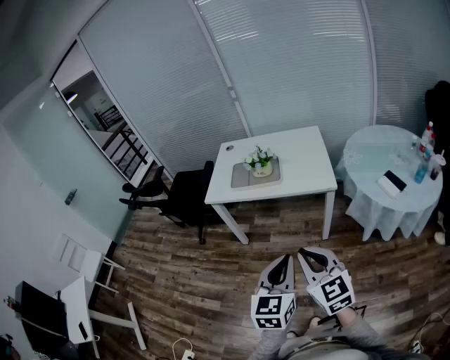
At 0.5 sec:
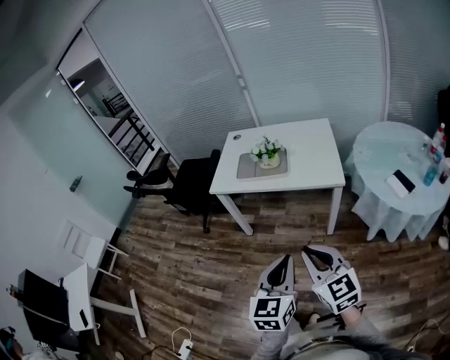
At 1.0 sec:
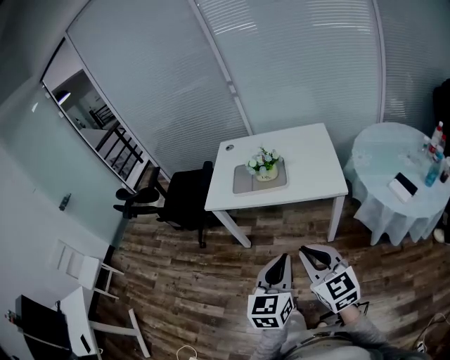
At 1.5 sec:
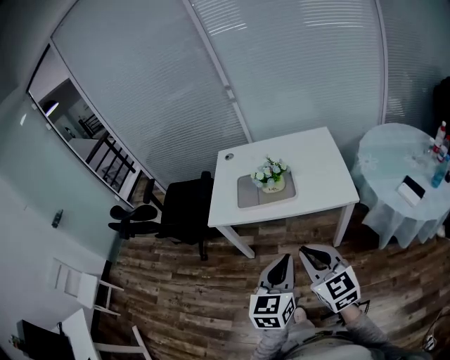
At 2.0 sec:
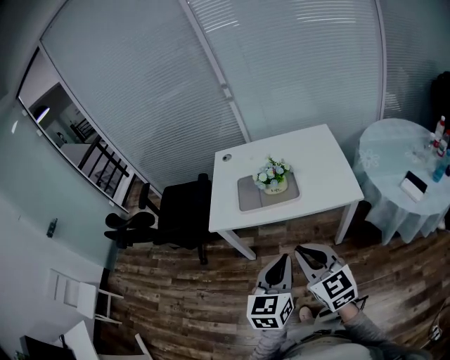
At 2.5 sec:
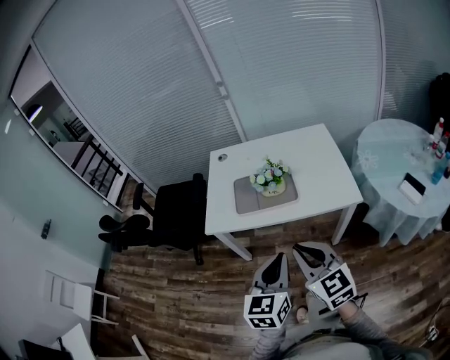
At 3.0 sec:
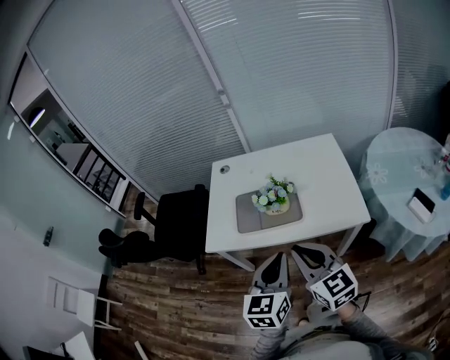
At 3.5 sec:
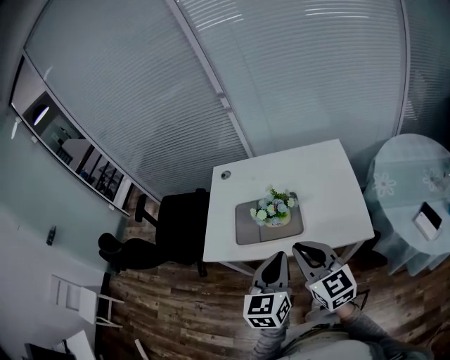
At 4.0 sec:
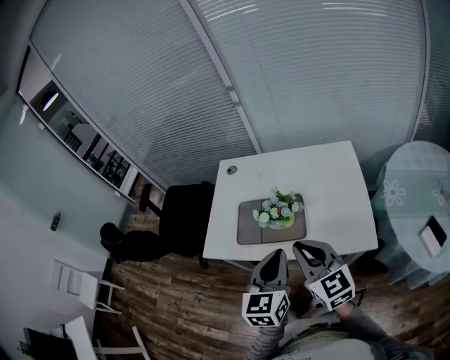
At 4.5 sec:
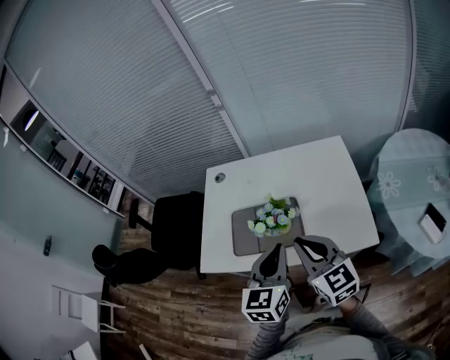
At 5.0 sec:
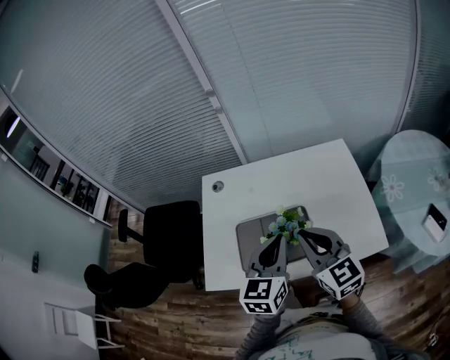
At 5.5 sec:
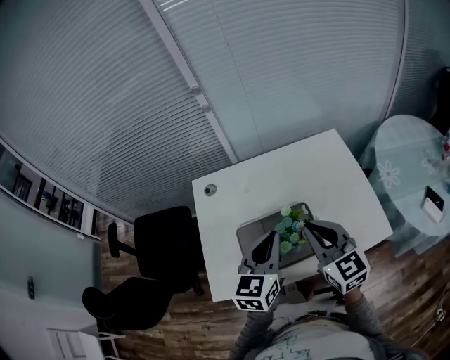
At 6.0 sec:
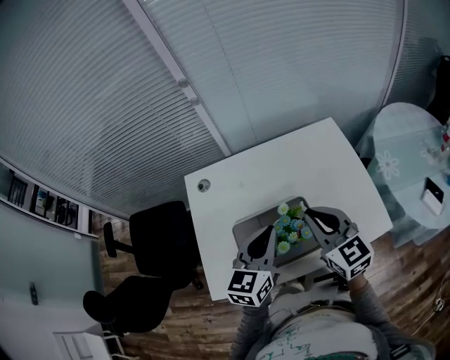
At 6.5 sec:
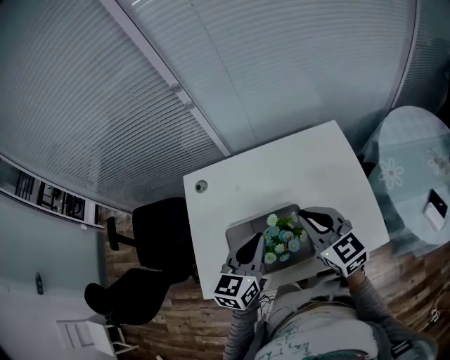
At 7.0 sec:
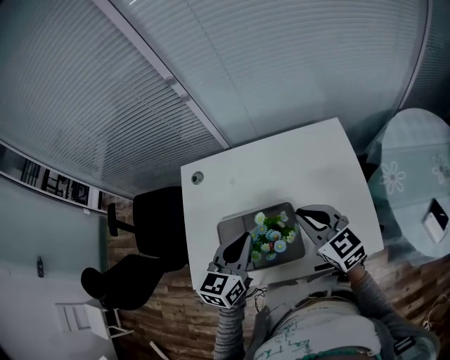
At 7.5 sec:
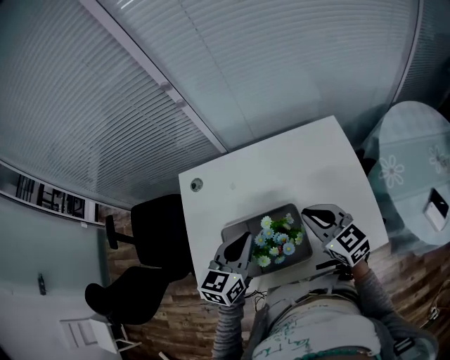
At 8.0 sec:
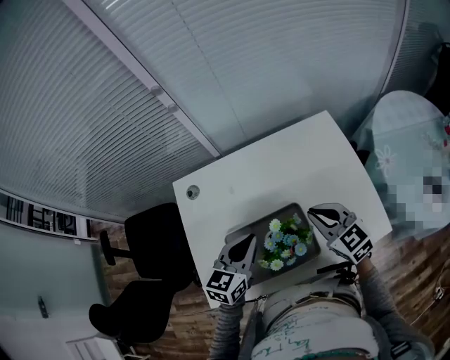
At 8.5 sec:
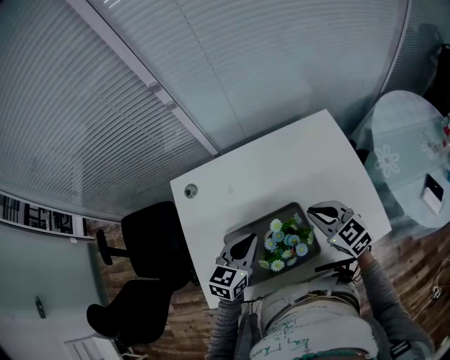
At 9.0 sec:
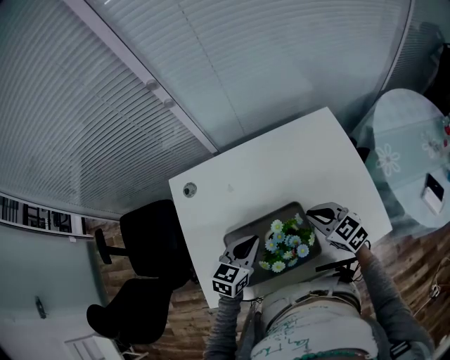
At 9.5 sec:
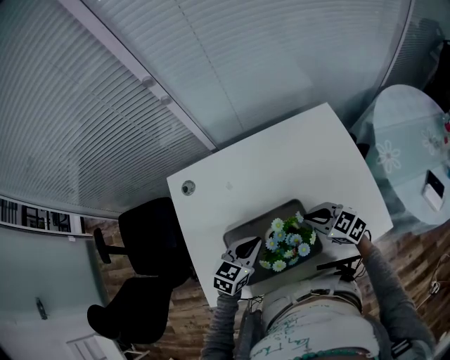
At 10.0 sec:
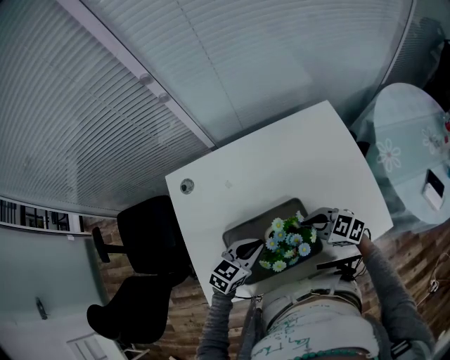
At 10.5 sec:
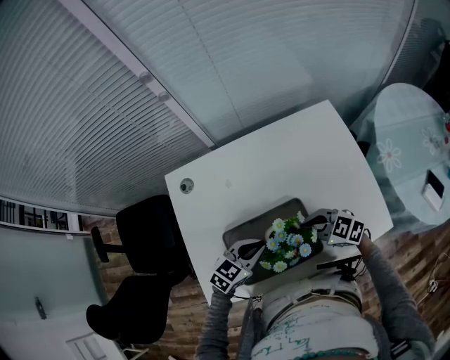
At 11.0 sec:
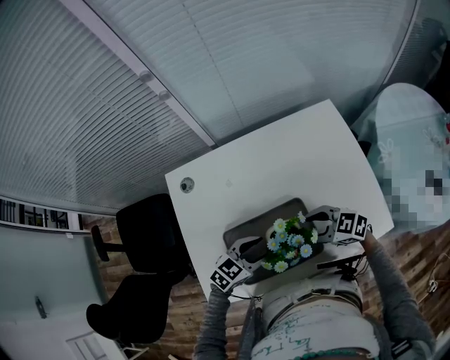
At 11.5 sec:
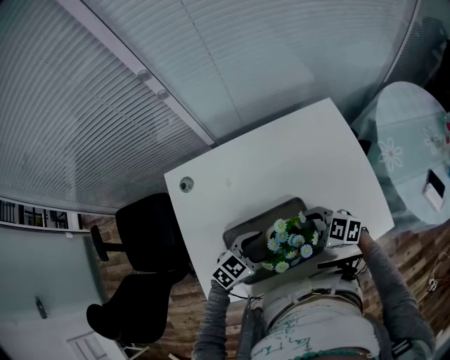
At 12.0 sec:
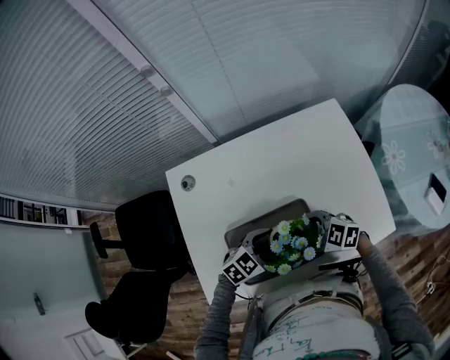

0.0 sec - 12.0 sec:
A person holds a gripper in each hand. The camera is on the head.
0.0 sec - 2.0 sec: Both grippers move forward and to the left, some 25 cm.
2.0 sec - 4.0 sec: The grippers both shift forward by approximately 25 cm.
4.0 sec - 6.0 sec: Both grippers move forward, roughly 20 cm. The left gripper turns by roughly 30 degrees.
6.0 sec - 8.0 sec: The right gripper goes some 10 cm downward, forward and to the right. Meanwhile the left gripper travels downward by some 5 cm.
8.0 sec - 10.0 sec: Both grippers travel together downward, some 10 cm. The right gripper changes its angle by about 30 degrees, while the left gripper changes its angle by roughly 20 degrees.
10.0 sec - 12.0 sec: The left gripper shifts by about 5 cm, changes its angle by about 20 degrees, and opens its fingers. Meanwhile the right gripper opens up.

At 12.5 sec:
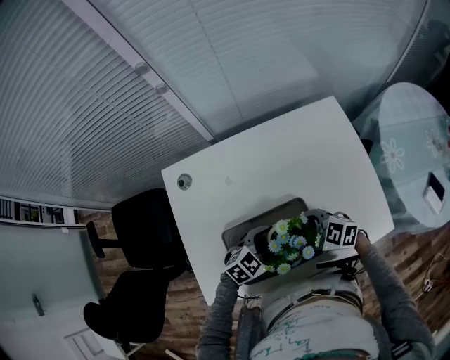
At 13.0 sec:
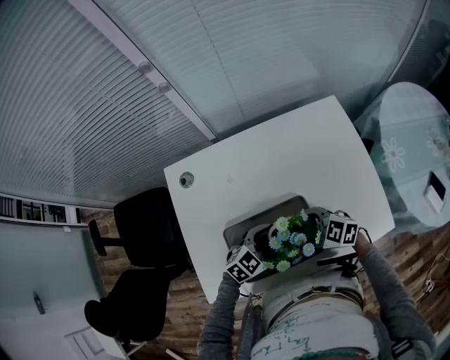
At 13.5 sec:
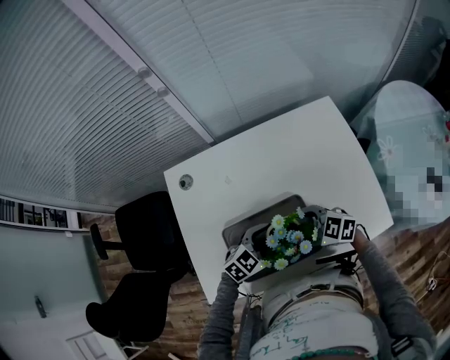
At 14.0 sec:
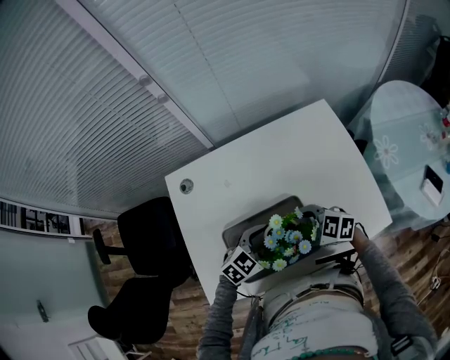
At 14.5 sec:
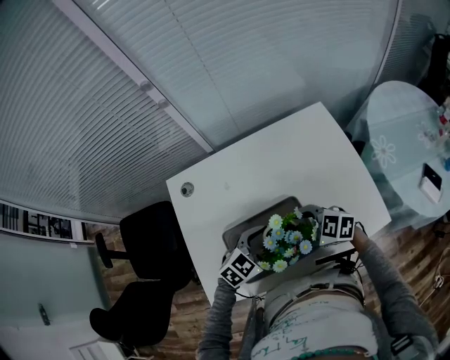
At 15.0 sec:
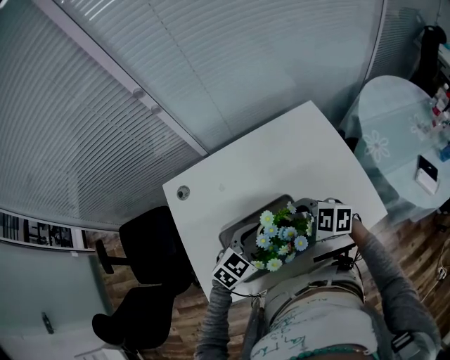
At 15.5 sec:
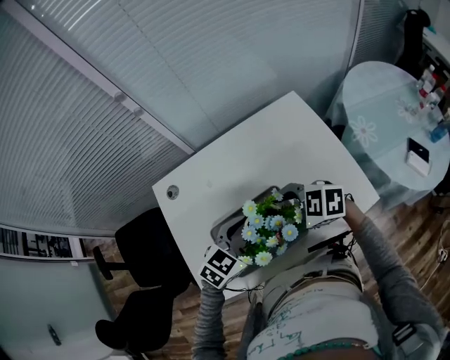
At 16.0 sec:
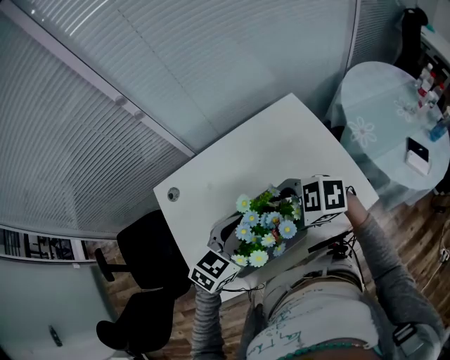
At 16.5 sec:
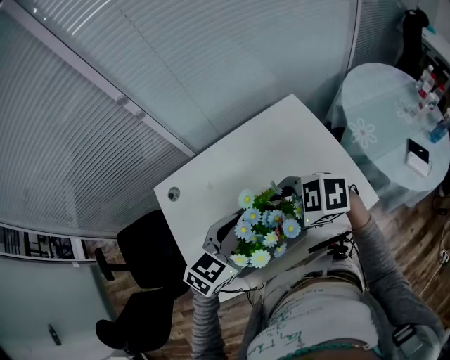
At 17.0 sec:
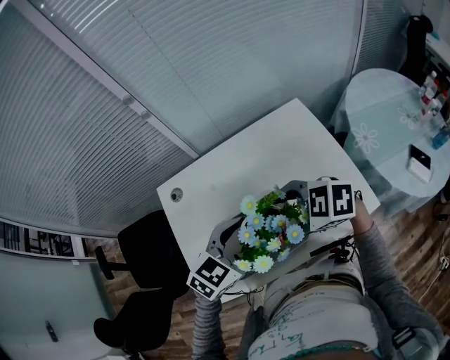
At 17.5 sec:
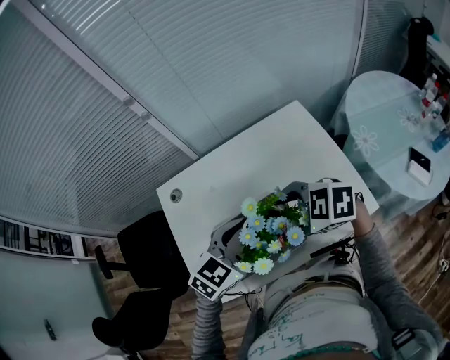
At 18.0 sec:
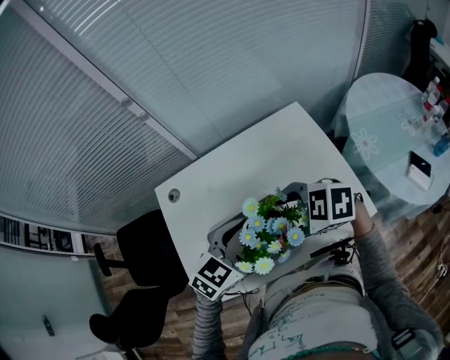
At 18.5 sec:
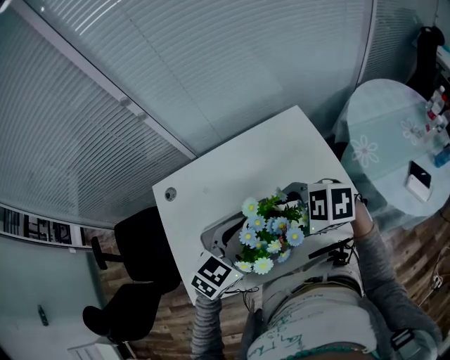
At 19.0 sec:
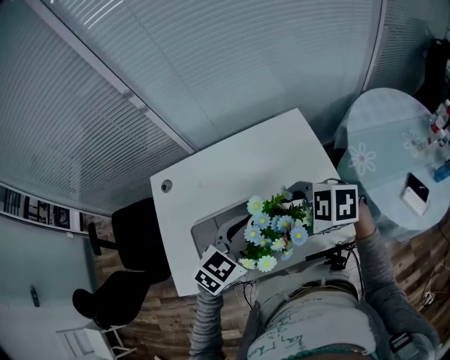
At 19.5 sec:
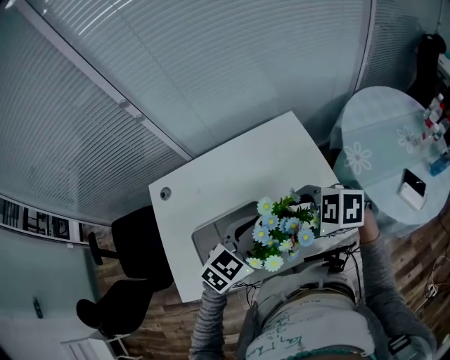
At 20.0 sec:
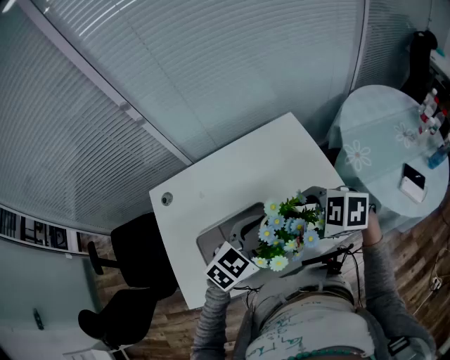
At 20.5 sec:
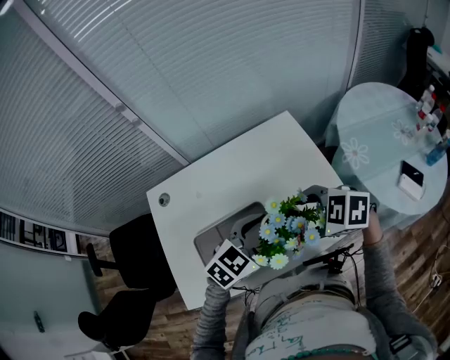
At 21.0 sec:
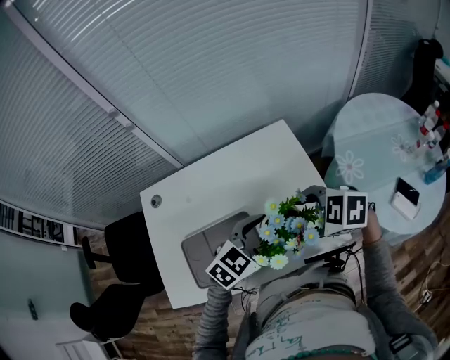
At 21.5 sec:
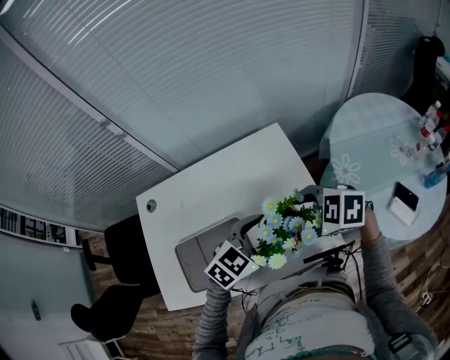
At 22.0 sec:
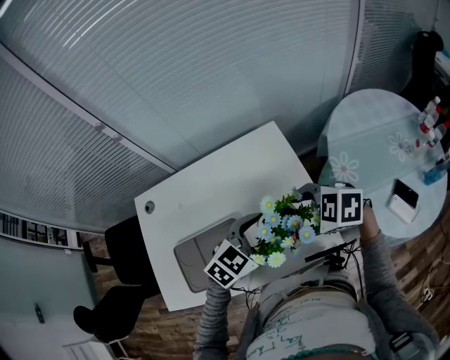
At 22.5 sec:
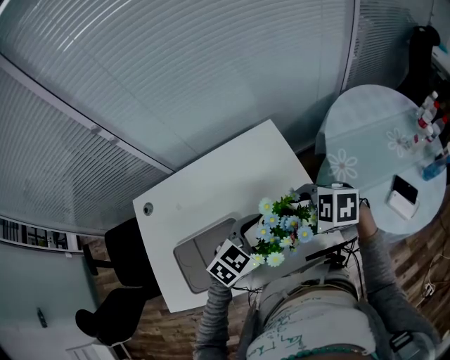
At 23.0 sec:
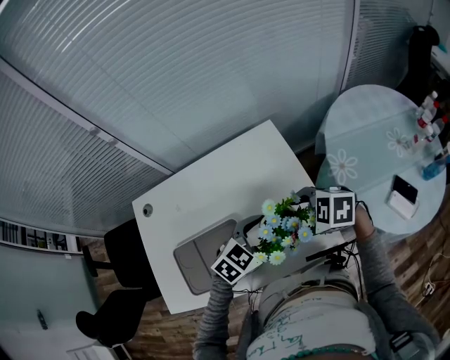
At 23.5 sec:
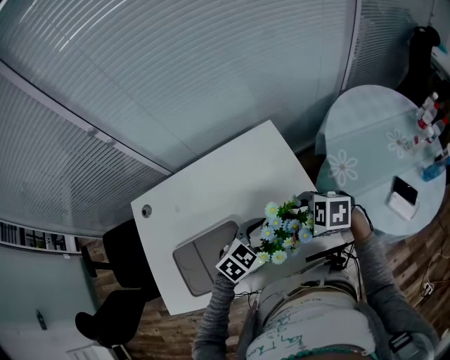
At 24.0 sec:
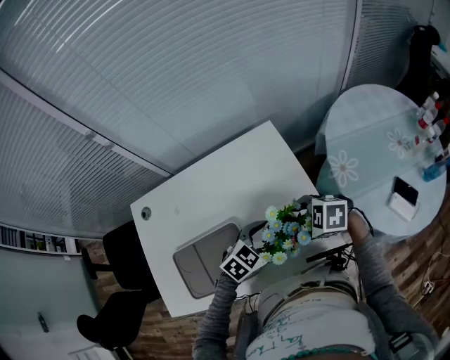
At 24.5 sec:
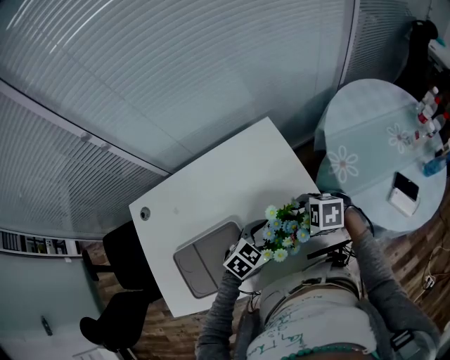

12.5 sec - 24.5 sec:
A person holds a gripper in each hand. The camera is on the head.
12.5 sec - 14.5 sec: The left gripper changes place by about 5 cm.
14.5 sec - 16.5 sec: The two grippers go roughly 15 cm upward.
16.5 sec - 18.5 sec: The left gripper moves some 5 cm, while the right gripper ends up about 5 cm from where it was.
18.5 sec - 20.5 sec: The left gripper shifts by some 5 cm. Meanwhile the right gripper moves some 5 cm.
20.5 sec - 22.5 sec: The right gripper shifts by roughly 15 cm; the left gripper moves some 15 cm.
22.5 sec - 24.5 sec: The grippers both shift downward by approximately 10 cm.

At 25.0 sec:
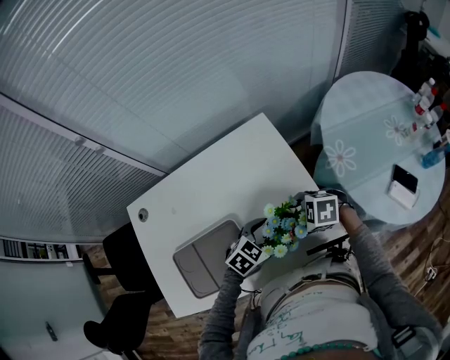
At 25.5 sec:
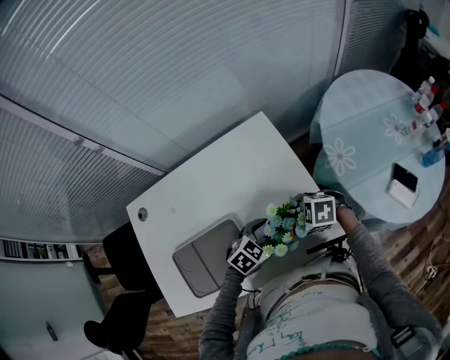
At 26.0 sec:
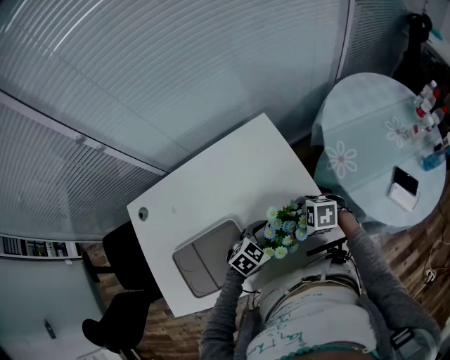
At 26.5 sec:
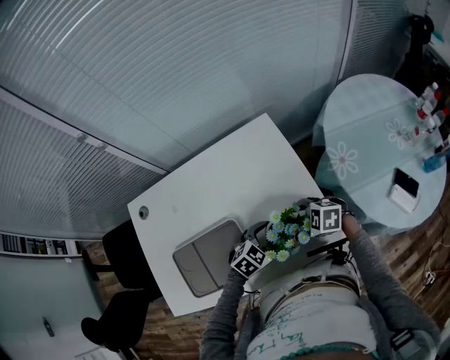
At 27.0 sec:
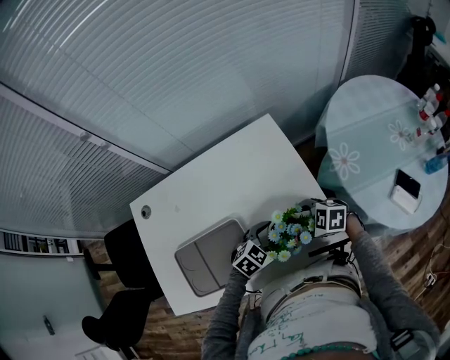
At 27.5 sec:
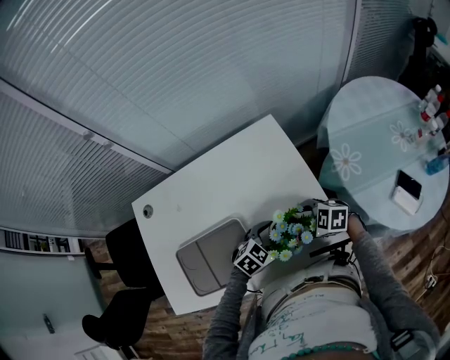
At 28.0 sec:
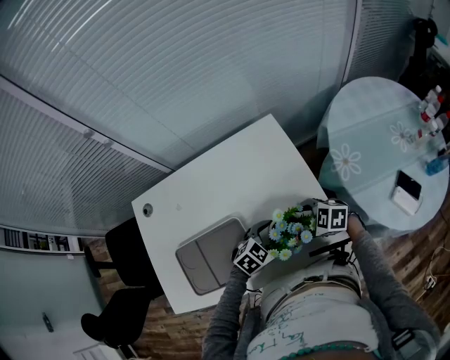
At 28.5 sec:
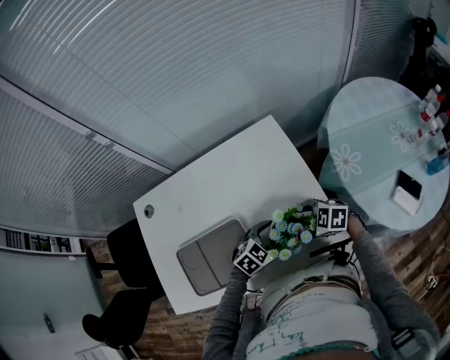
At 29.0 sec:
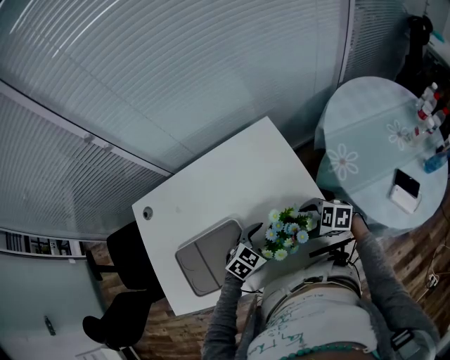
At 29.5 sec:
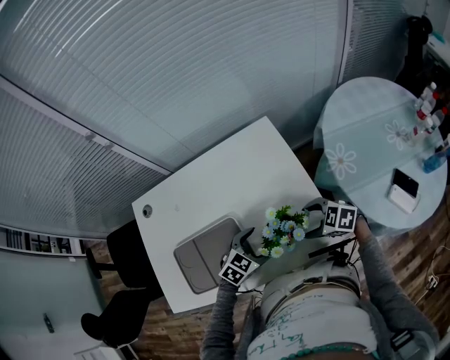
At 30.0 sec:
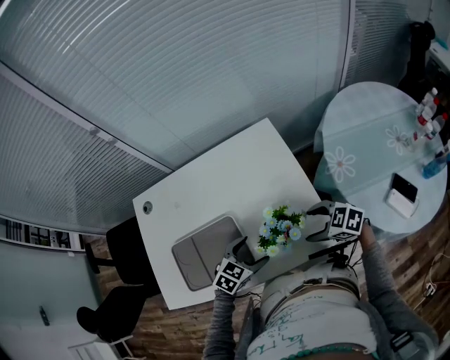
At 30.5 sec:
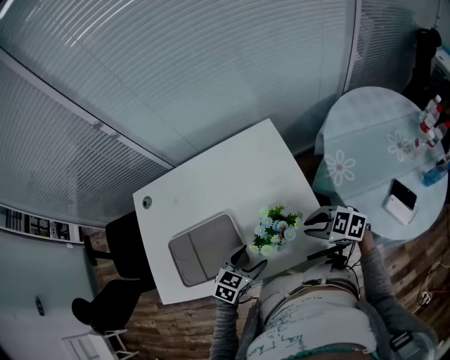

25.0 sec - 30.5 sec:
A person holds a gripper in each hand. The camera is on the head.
25.0 sec - 27.0 sec: There are only small adjustments of the grippers.
27.0 sec - 28.5 sec: Both grippers stay put.
28.5 sec - 30.5 sec: The right gripper shifts by roughly 10 cm, and closes. Meanwhile the left gripper moves approximately 10 cm, and changes its angle by roughly 30 degrees.
